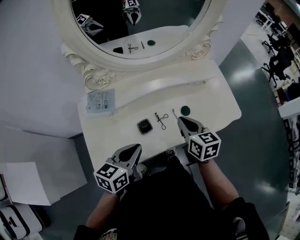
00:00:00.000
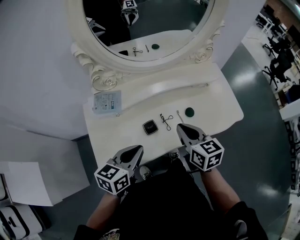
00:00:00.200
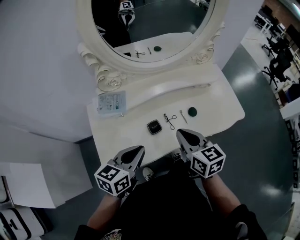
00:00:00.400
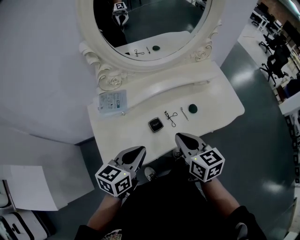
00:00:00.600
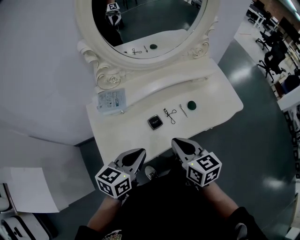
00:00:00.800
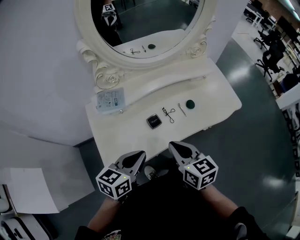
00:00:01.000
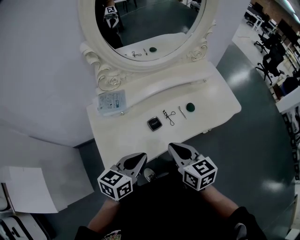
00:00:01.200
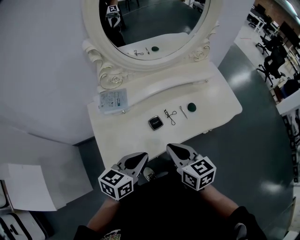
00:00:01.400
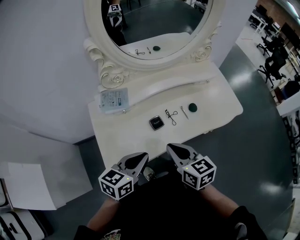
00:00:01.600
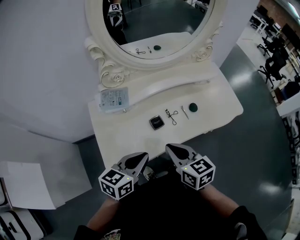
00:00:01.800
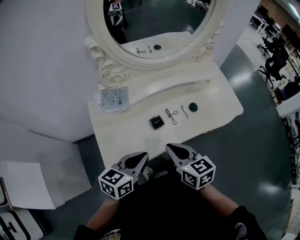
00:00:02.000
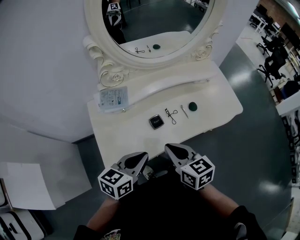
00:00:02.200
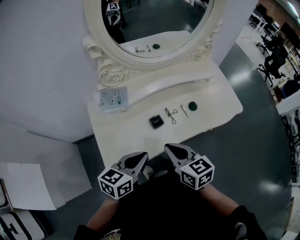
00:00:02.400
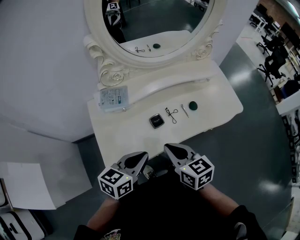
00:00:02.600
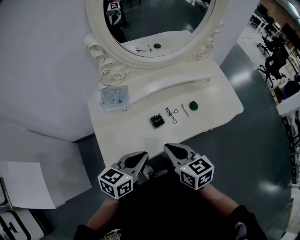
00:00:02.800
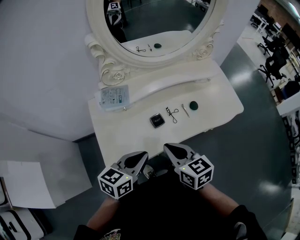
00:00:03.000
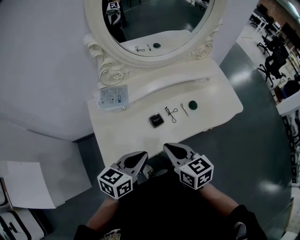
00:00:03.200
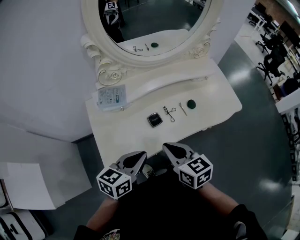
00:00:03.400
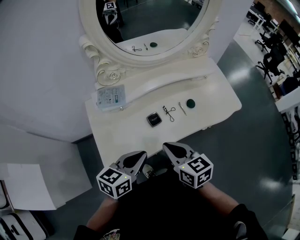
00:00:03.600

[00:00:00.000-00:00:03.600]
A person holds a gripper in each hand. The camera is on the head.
00:00:00.000 to 00:00:01.800: The right gripper is displaced backward and to the left by about 20 cm, while the left gripper shifts approximately 10 cm backward.
00:00:01.800 to 00:00:03.600: Both grippers stay about where they are.

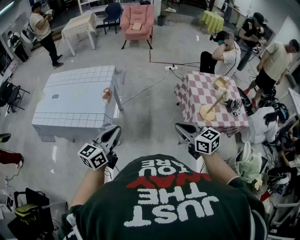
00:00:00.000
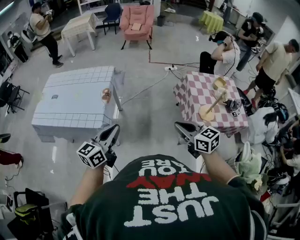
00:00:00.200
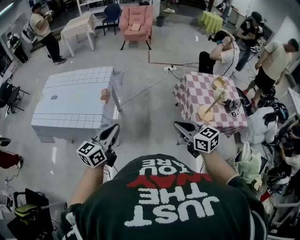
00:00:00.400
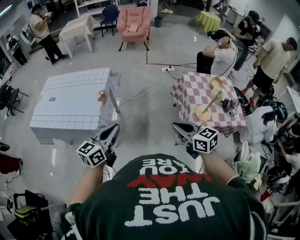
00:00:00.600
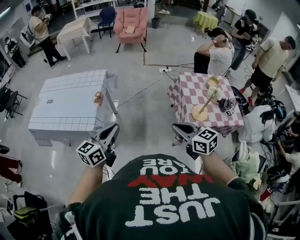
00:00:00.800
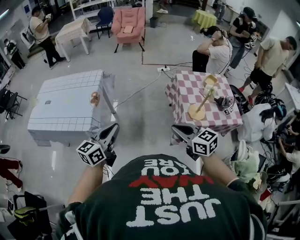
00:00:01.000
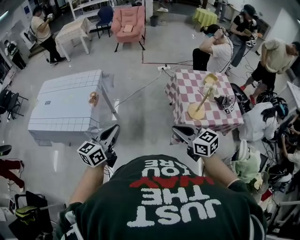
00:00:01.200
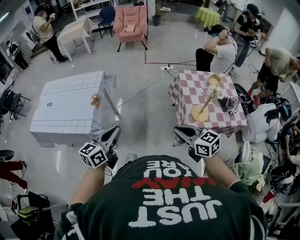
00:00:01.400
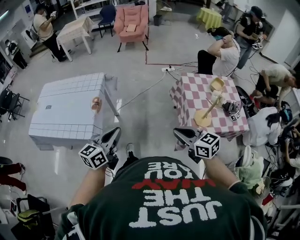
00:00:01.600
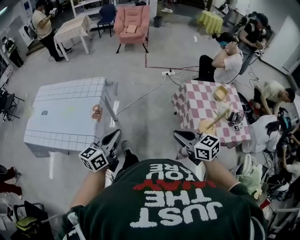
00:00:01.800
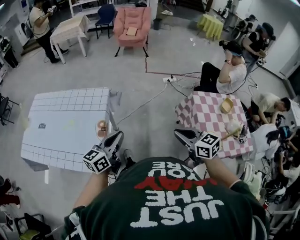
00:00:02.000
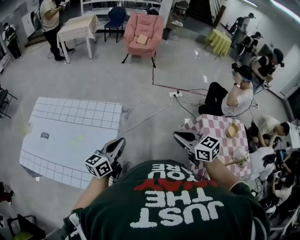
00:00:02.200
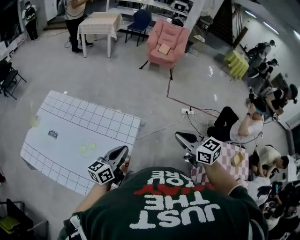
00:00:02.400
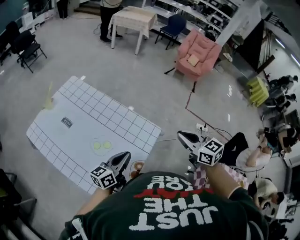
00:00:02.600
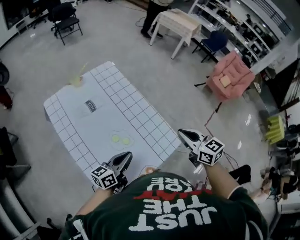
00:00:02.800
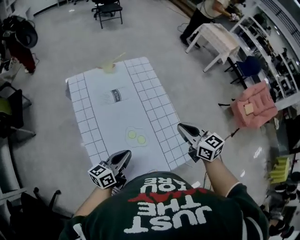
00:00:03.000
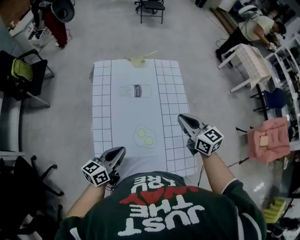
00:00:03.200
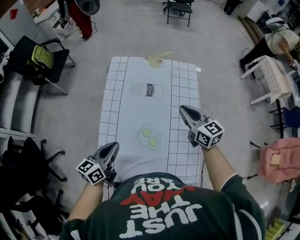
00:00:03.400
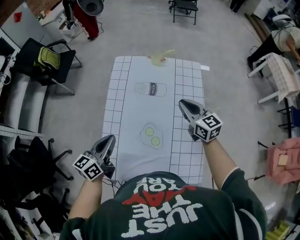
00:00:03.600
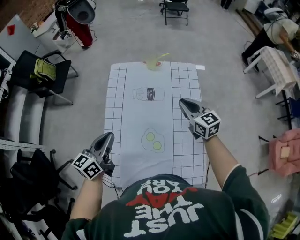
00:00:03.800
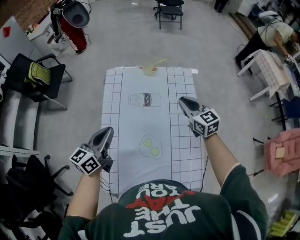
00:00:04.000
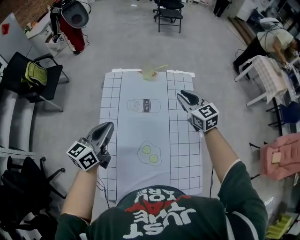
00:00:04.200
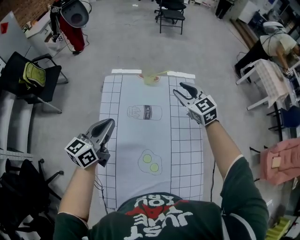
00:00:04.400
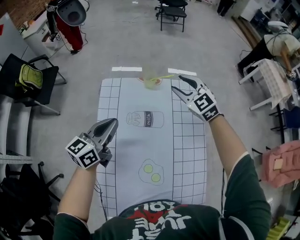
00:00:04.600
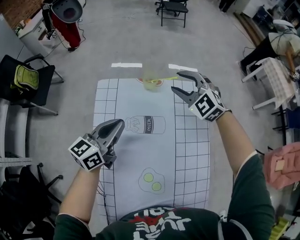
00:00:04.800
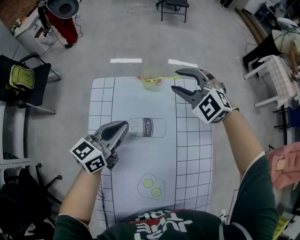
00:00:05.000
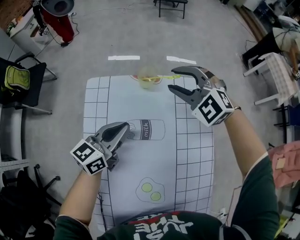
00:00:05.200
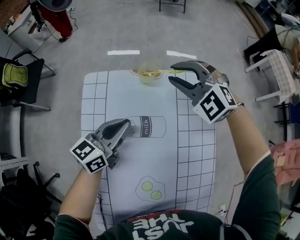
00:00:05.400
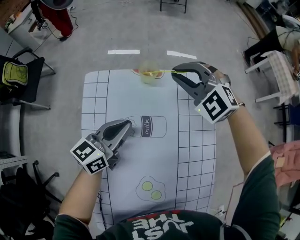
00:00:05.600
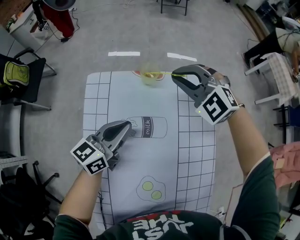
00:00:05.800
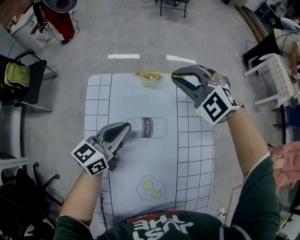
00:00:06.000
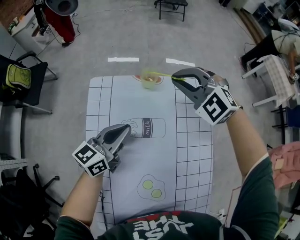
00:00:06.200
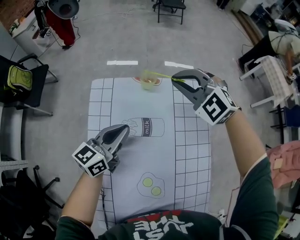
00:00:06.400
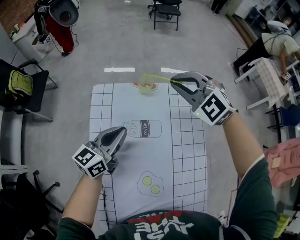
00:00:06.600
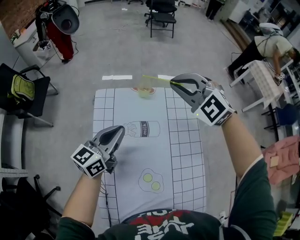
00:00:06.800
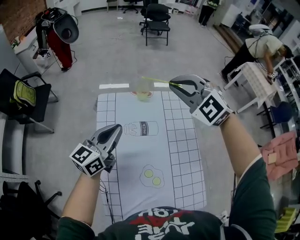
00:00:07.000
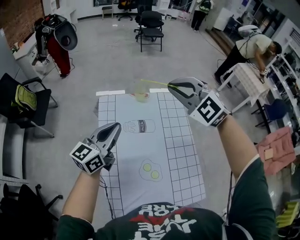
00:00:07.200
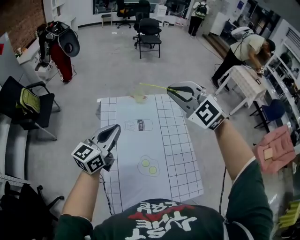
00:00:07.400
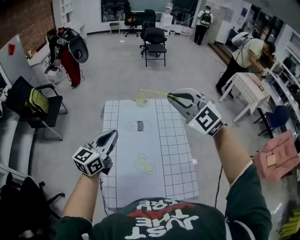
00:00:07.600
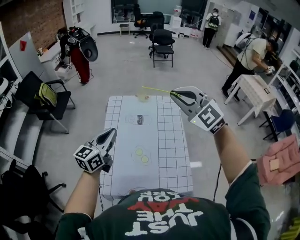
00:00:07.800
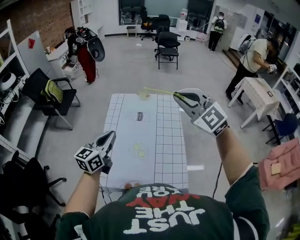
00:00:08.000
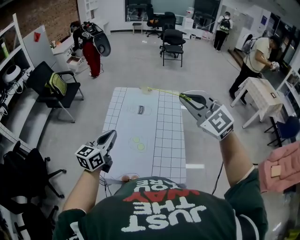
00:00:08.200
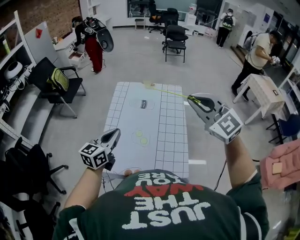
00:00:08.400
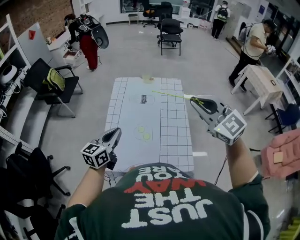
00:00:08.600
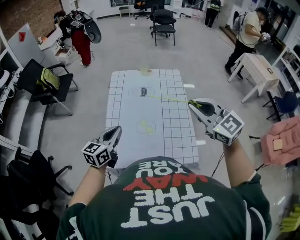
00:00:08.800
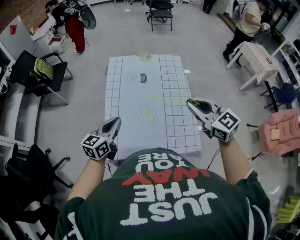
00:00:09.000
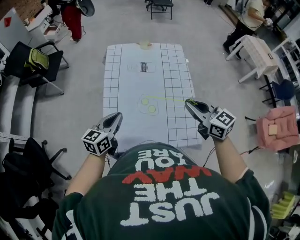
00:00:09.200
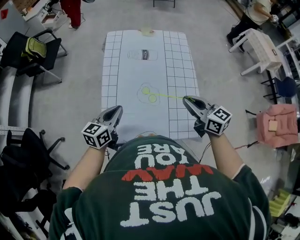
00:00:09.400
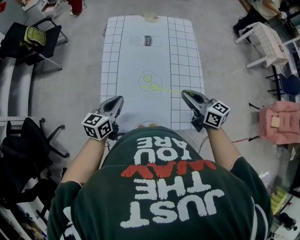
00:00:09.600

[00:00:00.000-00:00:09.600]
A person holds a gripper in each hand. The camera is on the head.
00:00:00.000 to 00:00:01.600: The right gripper shifts approximately 10 cm to the right. The left gripper heads to the right and forward, covering some 10 cm.
00:00:01.600 to 00:00:03.200: Both grippers are carried about 80 cm. The right gripper rotates approximately 70 degrees. The left gripper rotates roughly 80 degrees.
00:00:03.200 to 00:00:04.800: Both grippers move forward, approximately 35 cm. The right gripper twists approximately 60 degrees counterclockwise, seen from behind, and opens up.
00:00:04.800 to 00:00:06.400: The right gripper closes its fingers.
00:00:06.400 to 00:00:08.000: Both grippers travel together backward and upward, some 40 cm. The right gripper swivels some 20 degrees.
00:00:08.000 to 00:00:09.600: The left gripper goes approximately 20 cm downward, and swivels approximately 20 degrees. Meanwhile the right gripper shifts about 30 cm downward, and rotates around the line of its fingers by some 70 degrees, clockwise from behind.

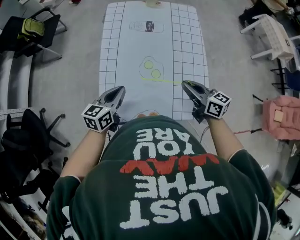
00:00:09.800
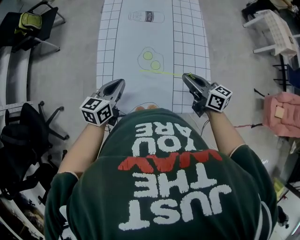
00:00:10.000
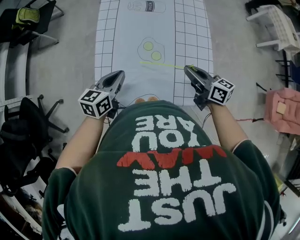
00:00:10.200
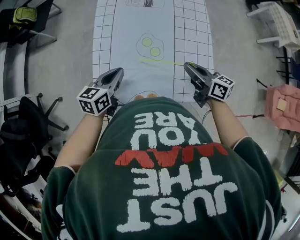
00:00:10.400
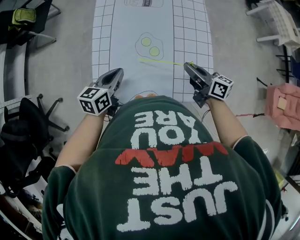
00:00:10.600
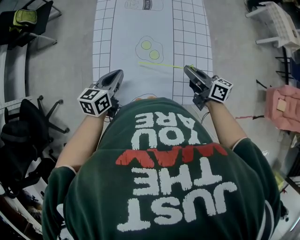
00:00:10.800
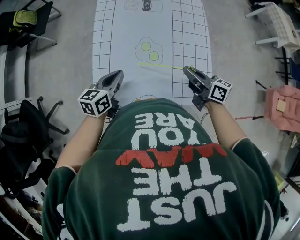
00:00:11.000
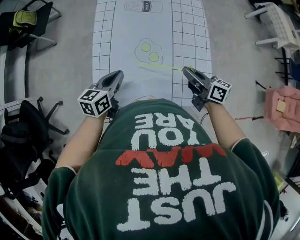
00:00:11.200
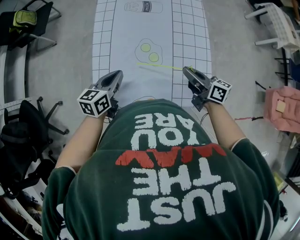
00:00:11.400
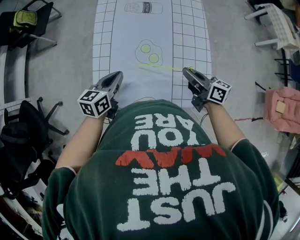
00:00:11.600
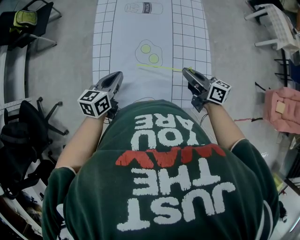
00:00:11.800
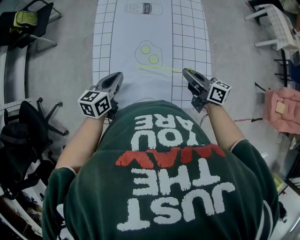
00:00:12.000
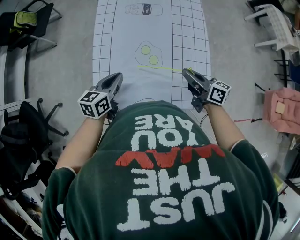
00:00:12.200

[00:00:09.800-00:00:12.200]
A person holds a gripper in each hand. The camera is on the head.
00:00:09.800 to 00:00:11.000: The grippers make only small movements.
00:00:11.000 to 00:00:12.200: The two grippers keep their place.

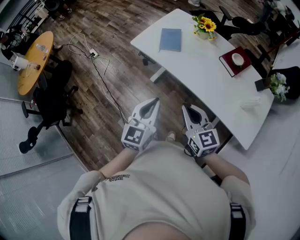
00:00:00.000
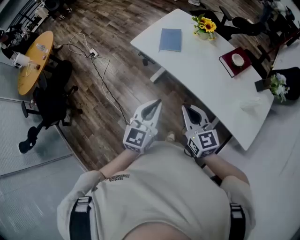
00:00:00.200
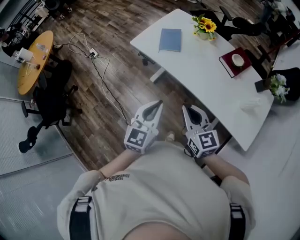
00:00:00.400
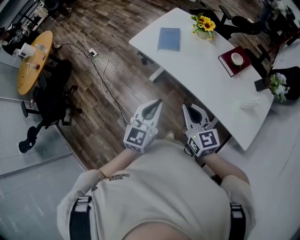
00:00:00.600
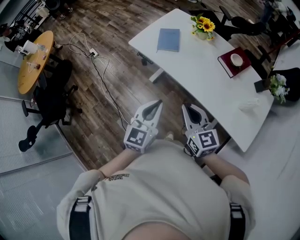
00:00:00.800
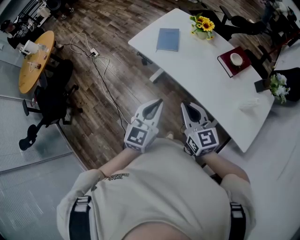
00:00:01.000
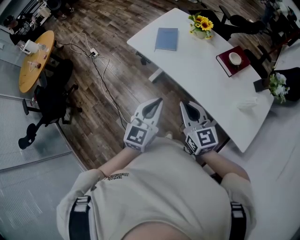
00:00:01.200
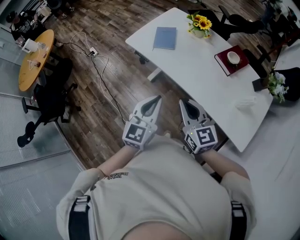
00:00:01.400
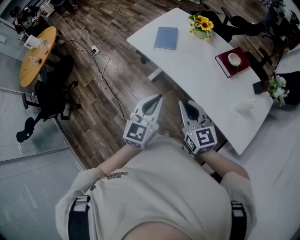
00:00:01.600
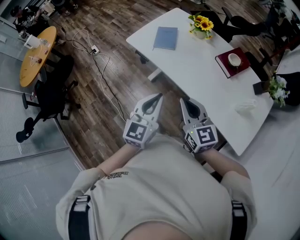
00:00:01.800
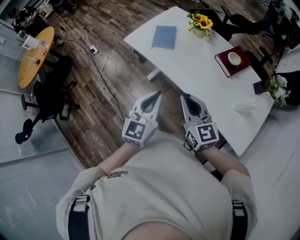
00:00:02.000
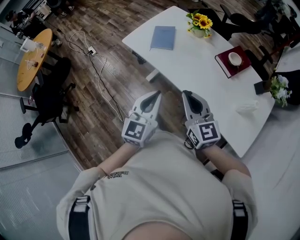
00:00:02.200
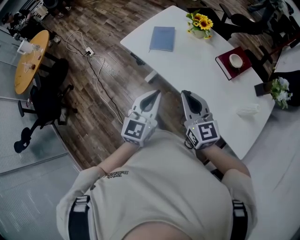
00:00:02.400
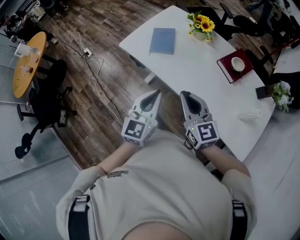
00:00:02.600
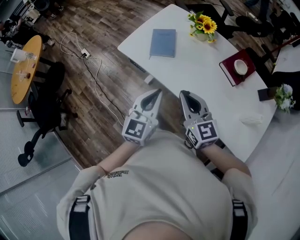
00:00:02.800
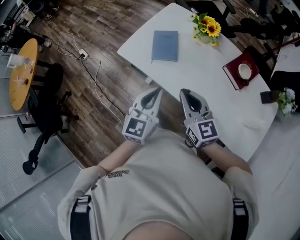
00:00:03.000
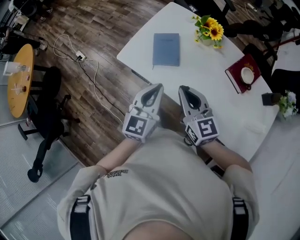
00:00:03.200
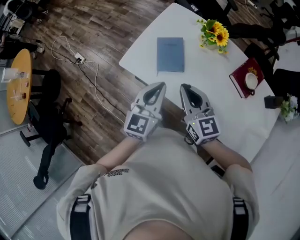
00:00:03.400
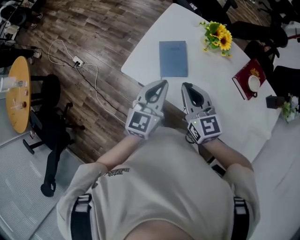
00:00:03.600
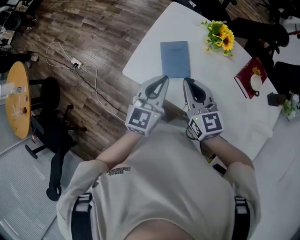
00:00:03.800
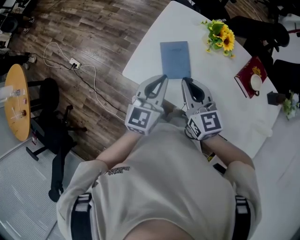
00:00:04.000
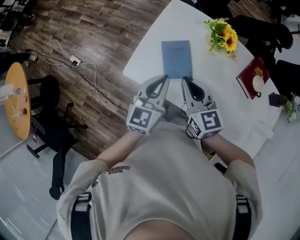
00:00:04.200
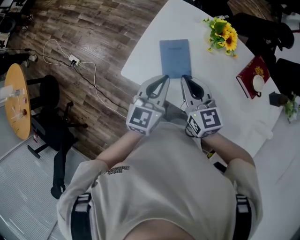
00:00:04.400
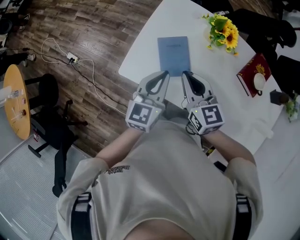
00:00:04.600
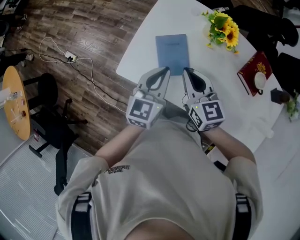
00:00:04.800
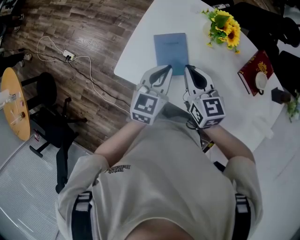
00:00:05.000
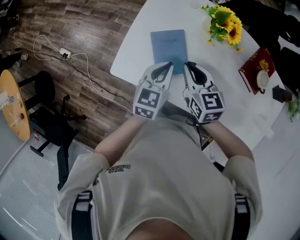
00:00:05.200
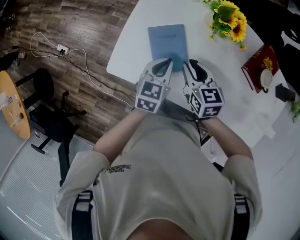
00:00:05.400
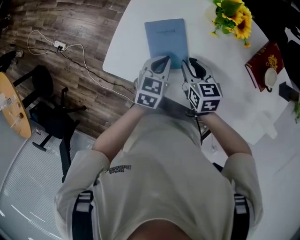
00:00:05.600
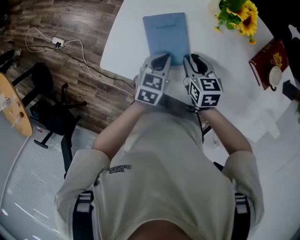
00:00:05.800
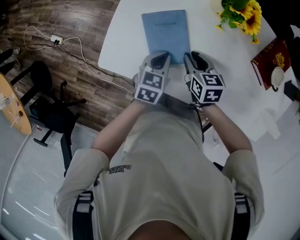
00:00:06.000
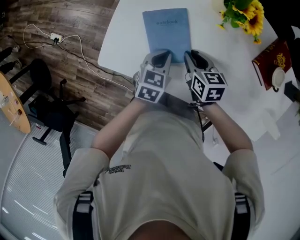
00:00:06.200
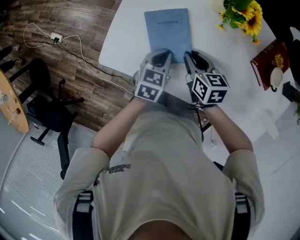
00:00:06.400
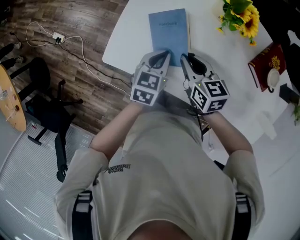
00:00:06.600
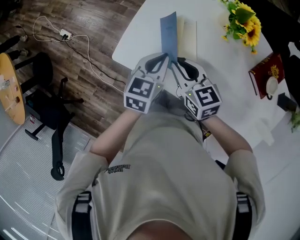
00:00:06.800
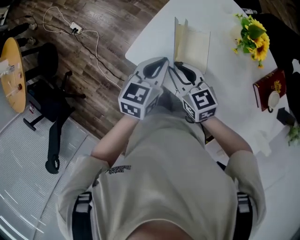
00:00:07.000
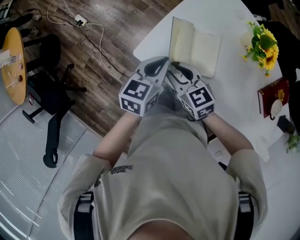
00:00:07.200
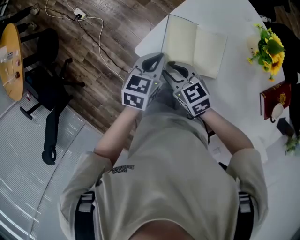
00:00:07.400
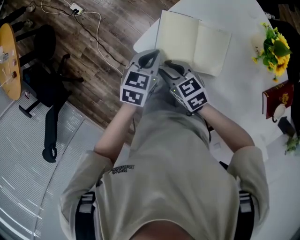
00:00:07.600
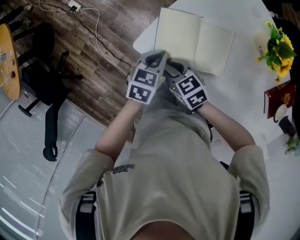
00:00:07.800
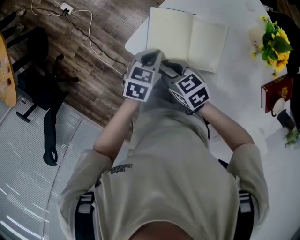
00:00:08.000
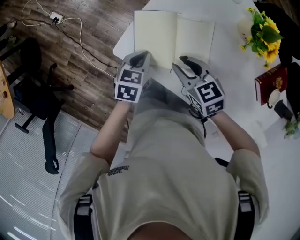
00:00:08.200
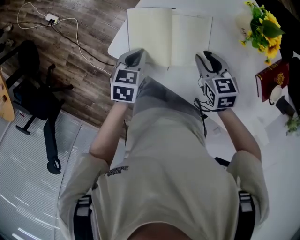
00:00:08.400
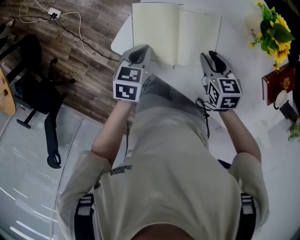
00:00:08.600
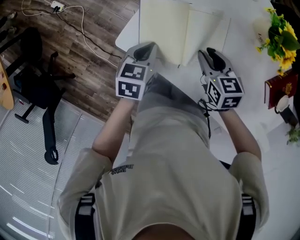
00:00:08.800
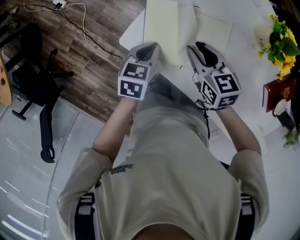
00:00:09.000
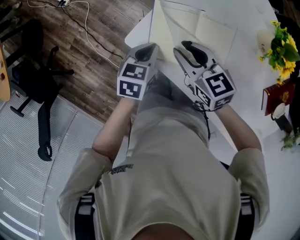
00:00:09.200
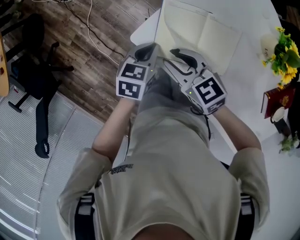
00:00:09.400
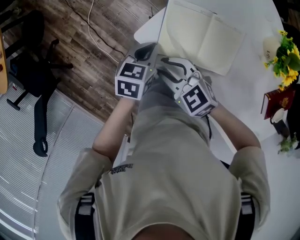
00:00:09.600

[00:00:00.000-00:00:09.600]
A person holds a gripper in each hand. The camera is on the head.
00:00:00.000 to 00:00:01.600: The left gripper moves to the right, some 10 cm, while the right gripper travels to the right by about 5 cm.
00:00:01.600 to 00:00:03.200: Both grippers travel together forward, roughly 25 cm.
00:00:03.200 to 00:00:04.800: The two grippers go some 20 cm forward.
00:00:04.800 to 00:00:06.400: The grippers both shift downward by approximately 20 cm. The right gripper rotates roughly 30 degrees, and opens up. The left gripper changes its angle by about 30 degrees.
00:00:06.400 to 00:00:08.000: The left gripper moves about 15 cm upward and comes back. The right gripper goes upward and returns, about 10 cm each way, and rotates roughly 50 degrees.
00:00:08.000 to 00:00:09.600: The right gripper rotates approximately 30 degrees. The left gripper moves approximately 5 cm.
